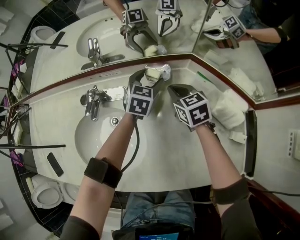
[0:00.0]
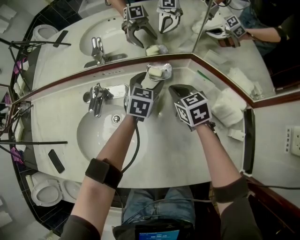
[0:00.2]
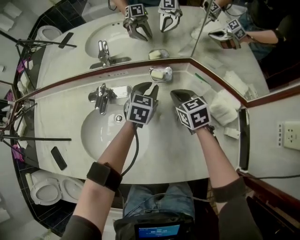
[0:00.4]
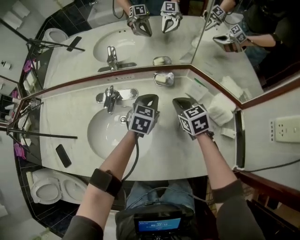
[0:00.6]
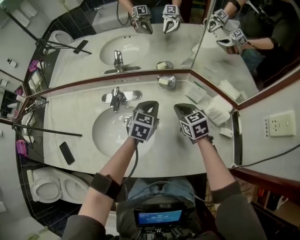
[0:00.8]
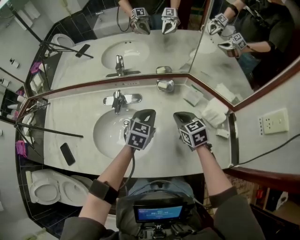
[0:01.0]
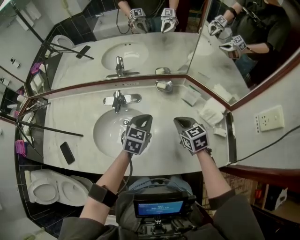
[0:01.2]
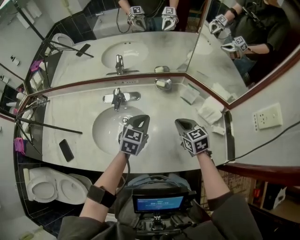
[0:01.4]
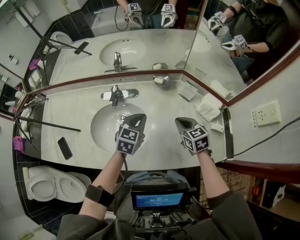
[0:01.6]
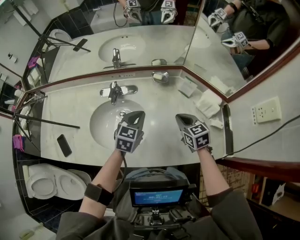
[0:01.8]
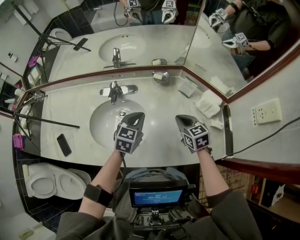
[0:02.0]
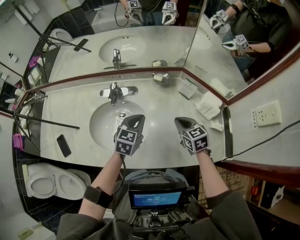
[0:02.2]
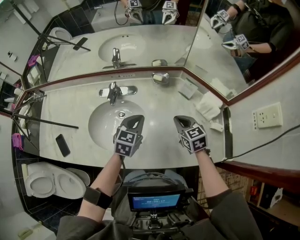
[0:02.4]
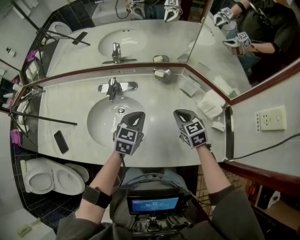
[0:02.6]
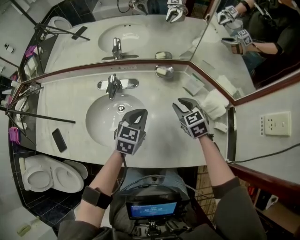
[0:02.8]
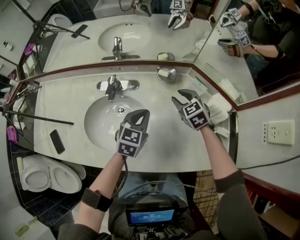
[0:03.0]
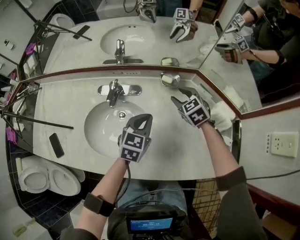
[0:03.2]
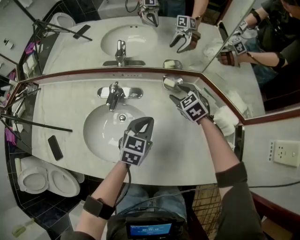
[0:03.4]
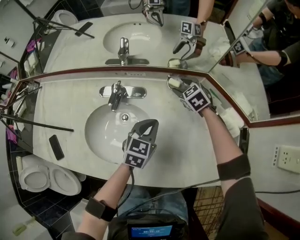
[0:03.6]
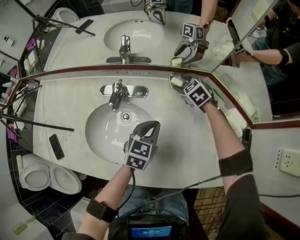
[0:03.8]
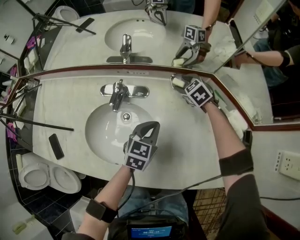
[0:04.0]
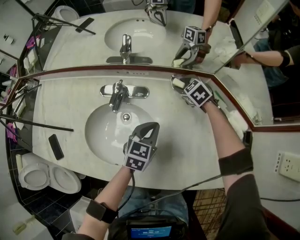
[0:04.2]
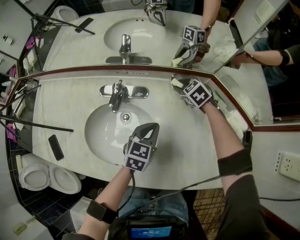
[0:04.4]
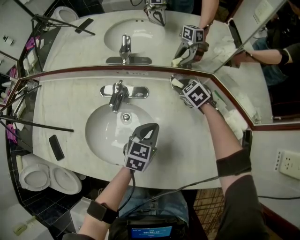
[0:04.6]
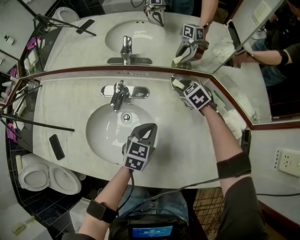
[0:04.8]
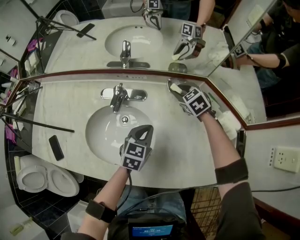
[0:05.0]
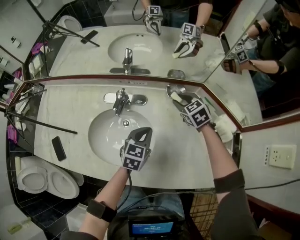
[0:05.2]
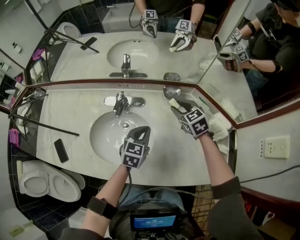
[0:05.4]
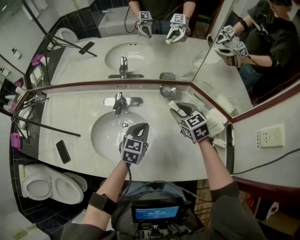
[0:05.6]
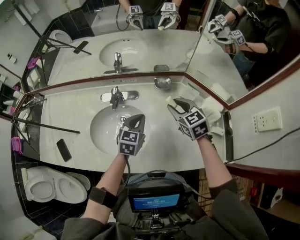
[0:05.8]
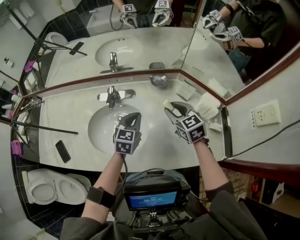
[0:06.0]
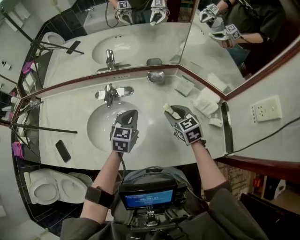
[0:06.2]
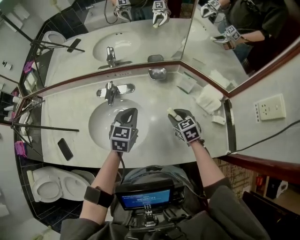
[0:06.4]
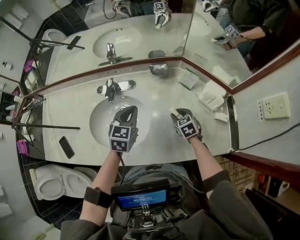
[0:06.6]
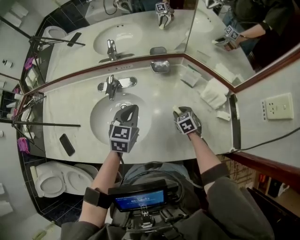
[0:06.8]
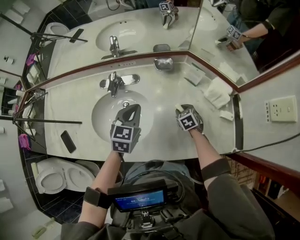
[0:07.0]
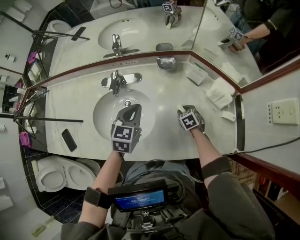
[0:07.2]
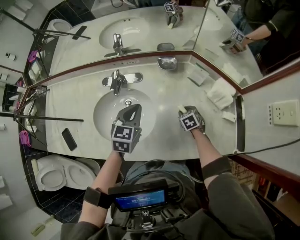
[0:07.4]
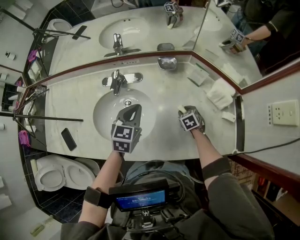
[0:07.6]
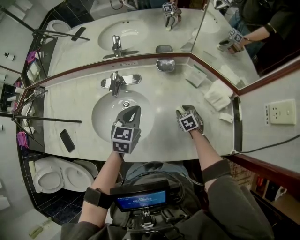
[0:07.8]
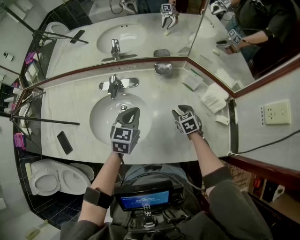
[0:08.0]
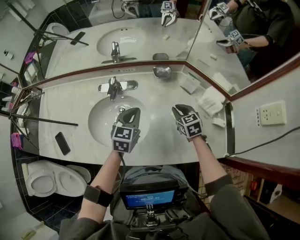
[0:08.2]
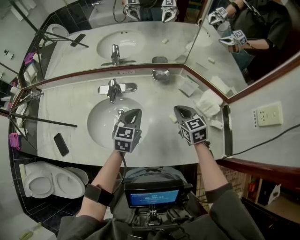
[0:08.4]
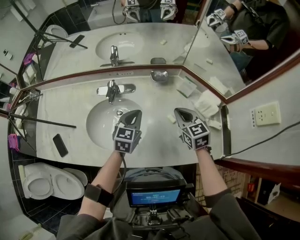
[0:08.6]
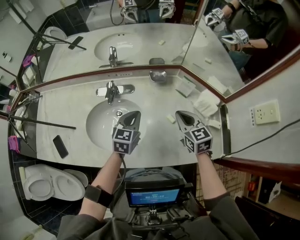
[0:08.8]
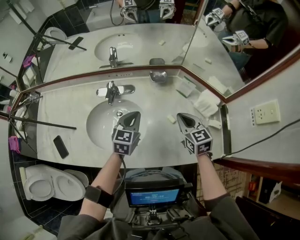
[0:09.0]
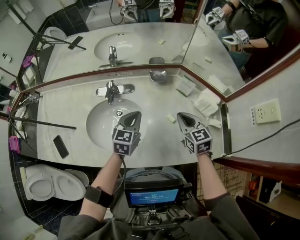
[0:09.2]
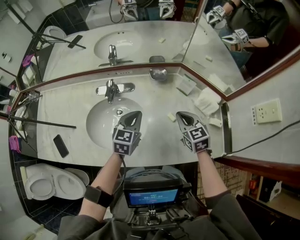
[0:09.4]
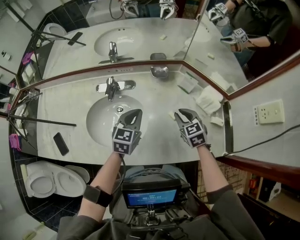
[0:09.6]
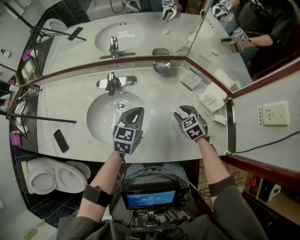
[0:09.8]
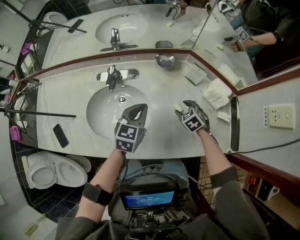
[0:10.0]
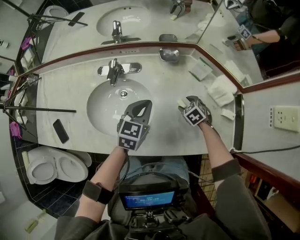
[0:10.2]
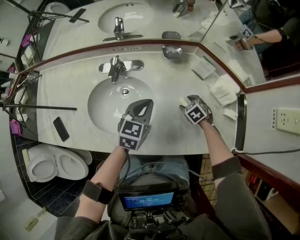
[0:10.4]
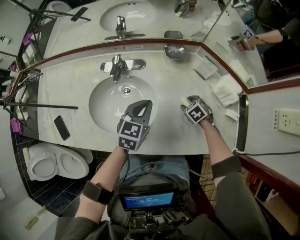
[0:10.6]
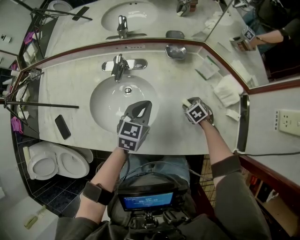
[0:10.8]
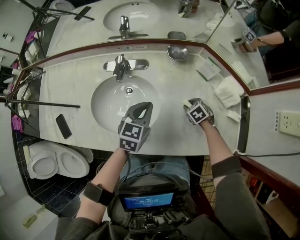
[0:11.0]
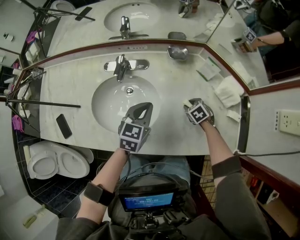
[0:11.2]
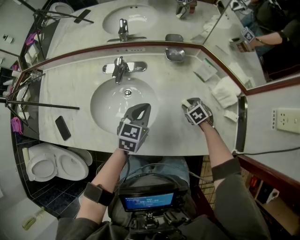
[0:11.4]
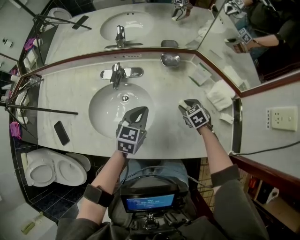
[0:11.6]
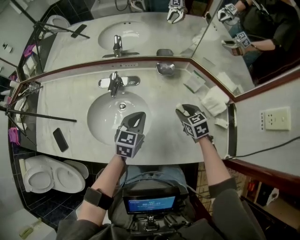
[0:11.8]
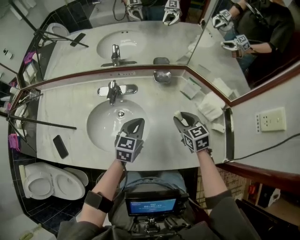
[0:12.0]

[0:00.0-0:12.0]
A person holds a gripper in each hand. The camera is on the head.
0:00.0 to 0:01.6: Both grippers move backward and upward, about 25 cm. The left gripper closes up.
0:01.6 to 0:03.0: The right gripper heads forward, covering about 15 cm, swivels approximately 20 degrees, and opens up.
0:03.0 to 0:04.4: The right gripper shifts some 20 cm forward and downward, and opens, then closes once more; the left gripper shifts about 5 cm downward.
0:04.4 to 0:06.0: The right gripper heads backward and upward, covering about 30 cm, and turns by roughly 30 degrees, while the left gripper travels upward by some 10 cm.
0:06.0 to 0:07.6: The right gripper travels downward by about 25 cm, and turns by about 30 degrees.
0:07.6 to 0:09.0: The right gripper shifts approximately 25 cm upward, angles its fingers upward, by about 30 degrees, and closes.
0:09.0 to 0:10.4: The right gripper travels downward by approximately 25 cm, tips its fingers downward by about 40 degrees, and opens up.
0:10.4 to 0:12.0: The right gripper goes roughly 20 cm upward, tilts its fingers some 30 degrees upward, and closes up.

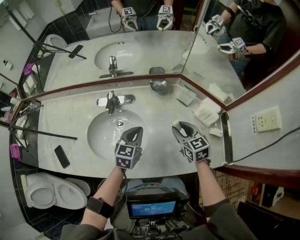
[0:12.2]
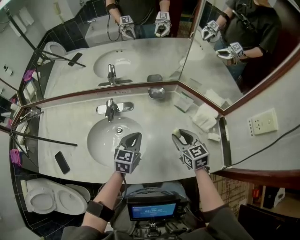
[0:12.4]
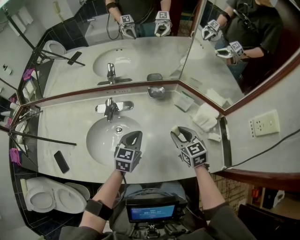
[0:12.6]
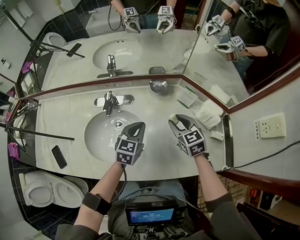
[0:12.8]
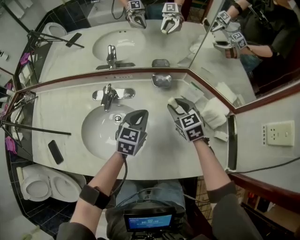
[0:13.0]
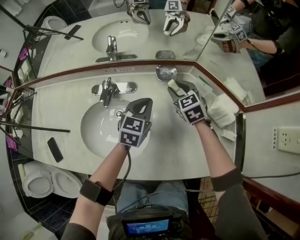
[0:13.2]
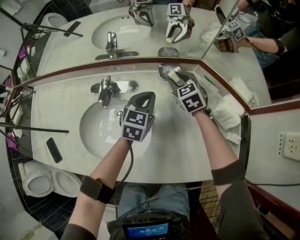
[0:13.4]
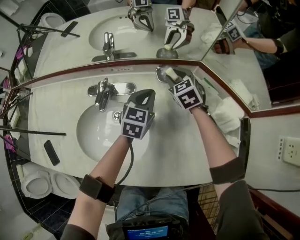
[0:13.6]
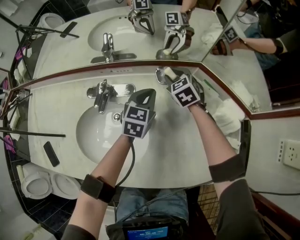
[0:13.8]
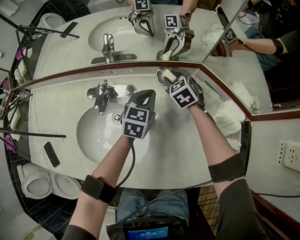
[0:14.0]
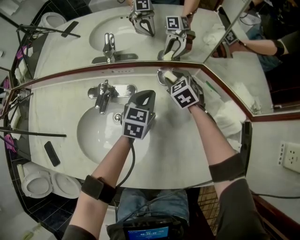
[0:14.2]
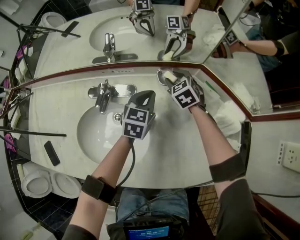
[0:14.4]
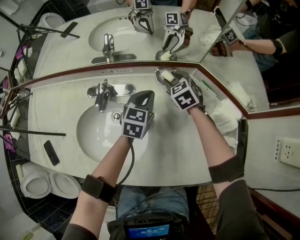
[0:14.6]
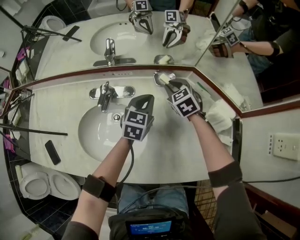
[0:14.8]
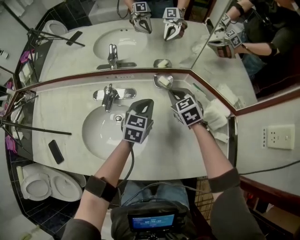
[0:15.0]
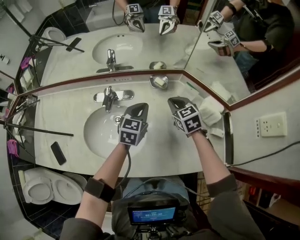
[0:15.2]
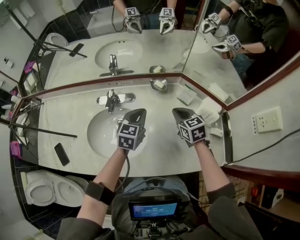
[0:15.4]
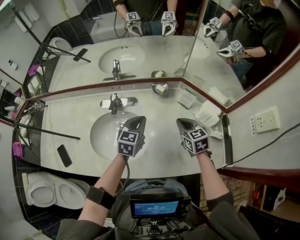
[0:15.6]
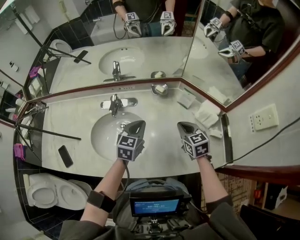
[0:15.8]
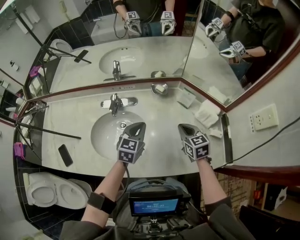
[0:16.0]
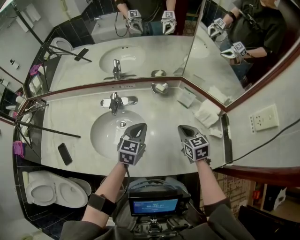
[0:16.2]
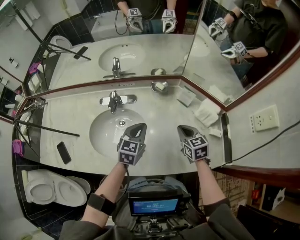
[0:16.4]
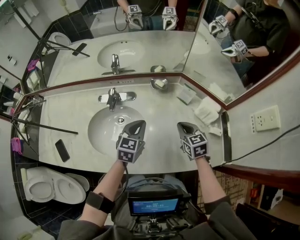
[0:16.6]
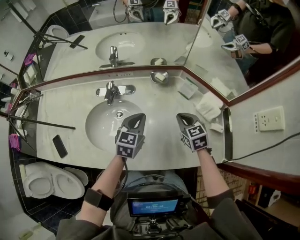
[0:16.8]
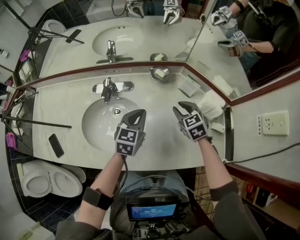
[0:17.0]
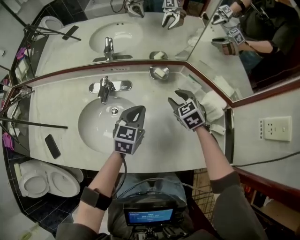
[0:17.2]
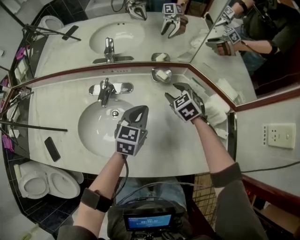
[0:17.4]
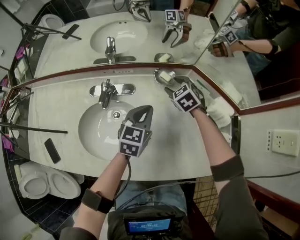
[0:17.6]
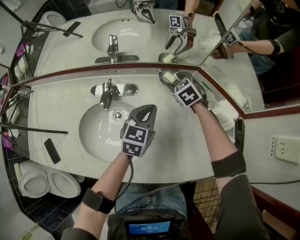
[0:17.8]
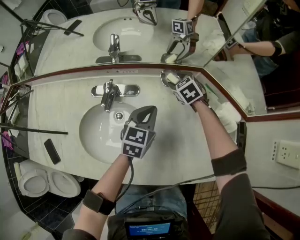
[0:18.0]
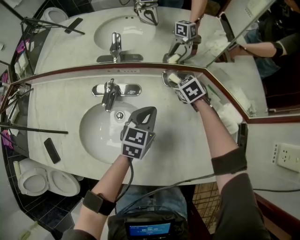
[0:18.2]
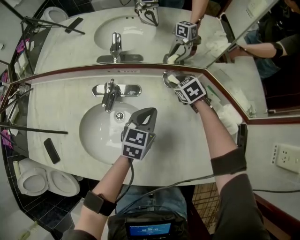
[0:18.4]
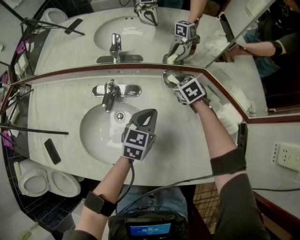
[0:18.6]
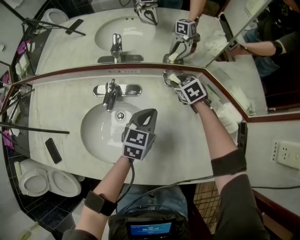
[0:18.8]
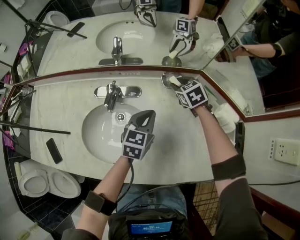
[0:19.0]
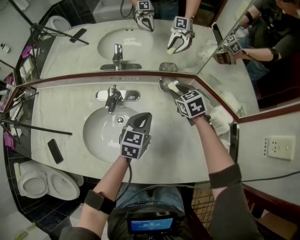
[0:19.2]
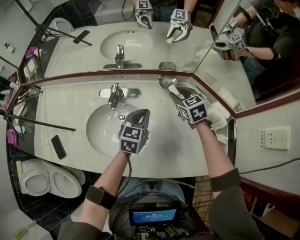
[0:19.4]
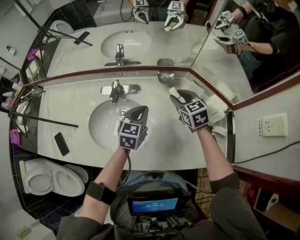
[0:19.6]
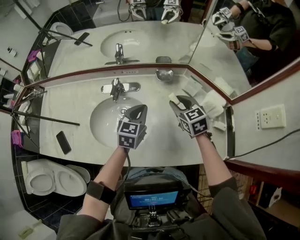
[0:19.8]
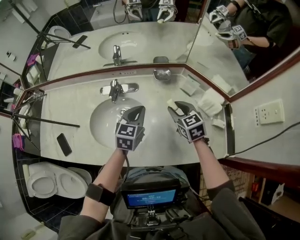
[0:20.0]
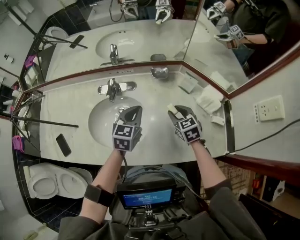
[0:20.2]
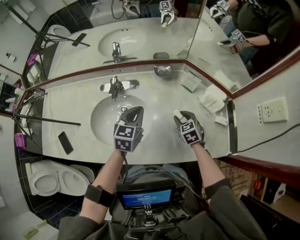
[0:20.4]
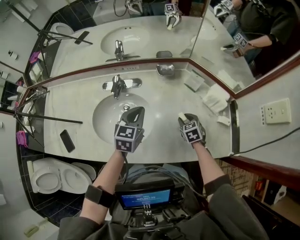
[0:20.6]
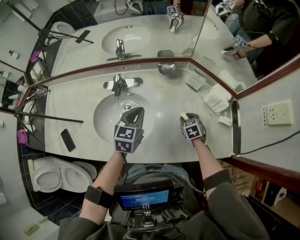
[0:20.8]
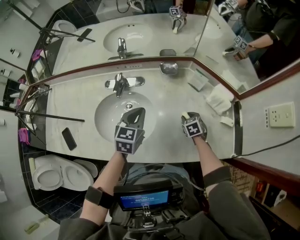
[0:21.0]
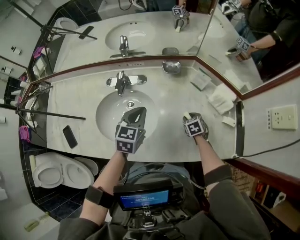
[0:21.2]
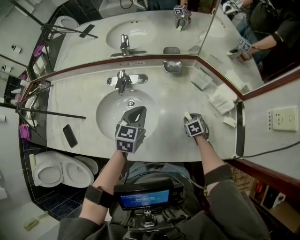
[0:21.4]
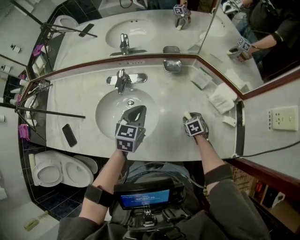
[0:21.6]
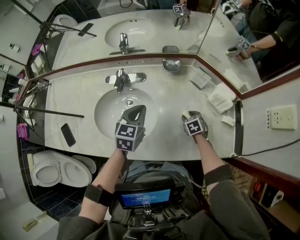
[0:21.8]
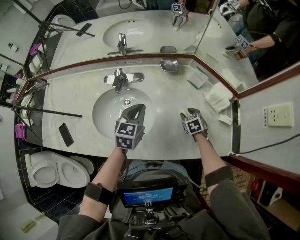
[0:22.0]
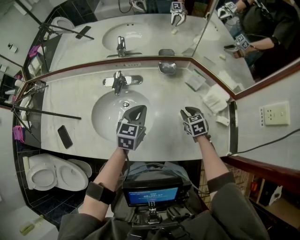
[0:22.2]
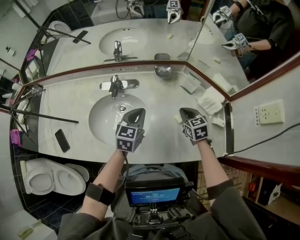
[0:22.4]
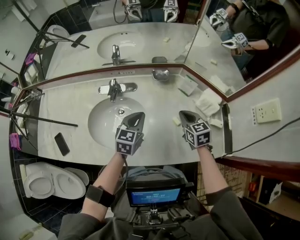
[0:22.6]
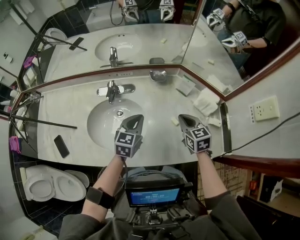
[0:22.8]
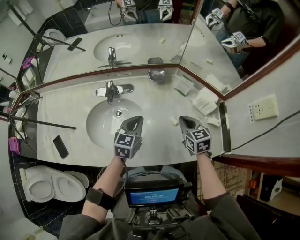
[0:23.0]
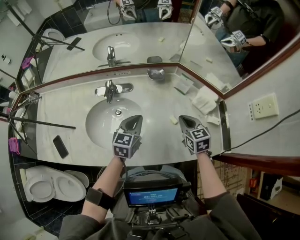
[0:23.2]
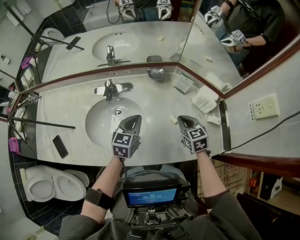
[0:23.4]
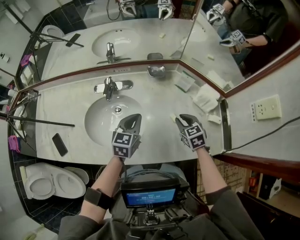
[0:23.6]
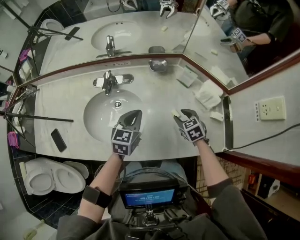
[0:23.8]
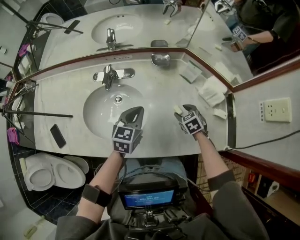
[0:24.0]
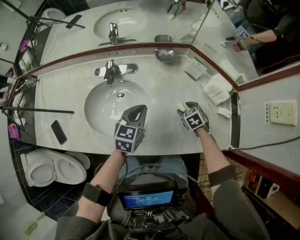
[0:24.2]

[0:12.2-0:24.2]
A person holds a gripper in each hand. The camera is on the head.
0:12.2 to 0:13.8: The grippers both shift forward and downward by about 25 cm. The right gripper rotates some 30 degrees.
0:13.8 to 0:15.2: Both grippers travel together backward and upward, approximately 15 cm. The right gripper closes up.
0:15.2 to 0:16.6: The two grippers go some 10 cm backward.
0:16.6 to 0:18.2: The right gripper goes approximately 30 cm forward and downward, changes its angle by about 30 degrees, and opens up; the left gripper travels forward and downward by approximately 15 cm.
0:18.2 to 0:19.8: The right gripper goes roughly 25 cm backward and upward, and rotates roughly 20 degrees, while the left gripper shifts roughly 10 cm backward and upward.
0:19.8 to 0:21.2: The right gripper moves downward, approximately 25 cm, and rotates about 30 degrees.
0:21.2 to 0:22.6: The right gripper moves upward, approximately 20 cm, swivels roughly 30 degrees, and closes.
0:22.6 to 0:24.2: The right gripper goes approximately 15 cm downward, changes its angle by about 30 degrees, and opens up.
